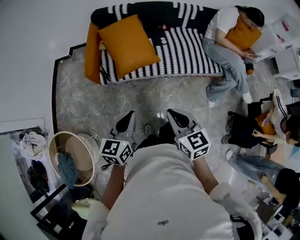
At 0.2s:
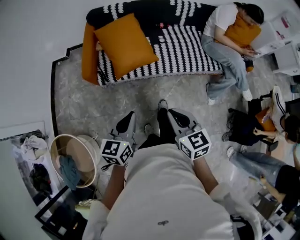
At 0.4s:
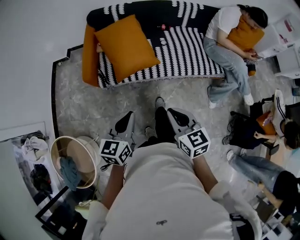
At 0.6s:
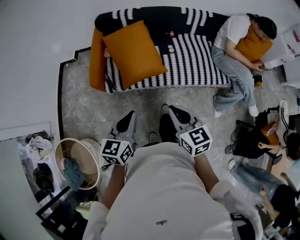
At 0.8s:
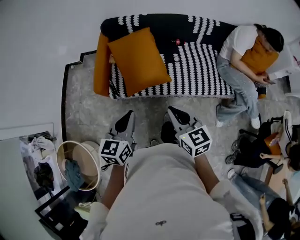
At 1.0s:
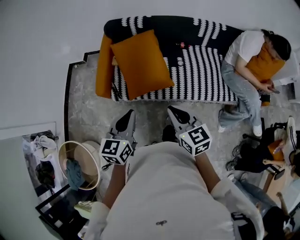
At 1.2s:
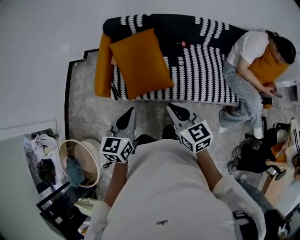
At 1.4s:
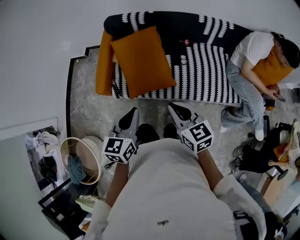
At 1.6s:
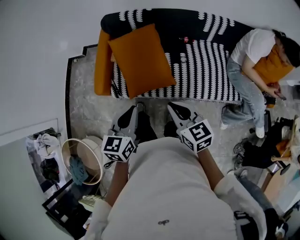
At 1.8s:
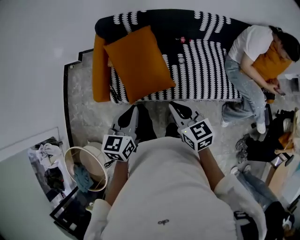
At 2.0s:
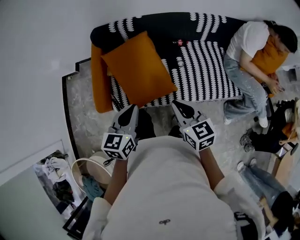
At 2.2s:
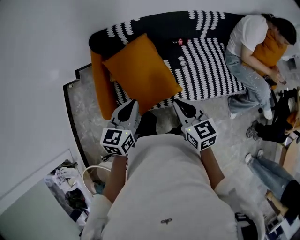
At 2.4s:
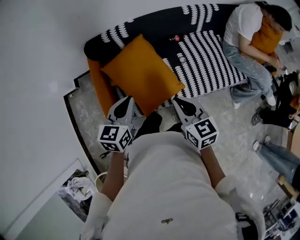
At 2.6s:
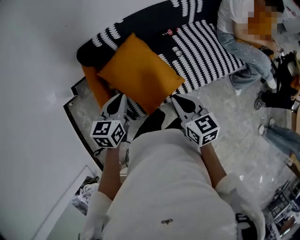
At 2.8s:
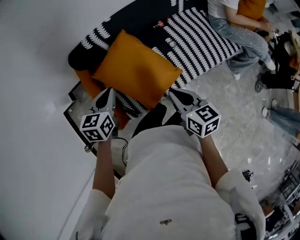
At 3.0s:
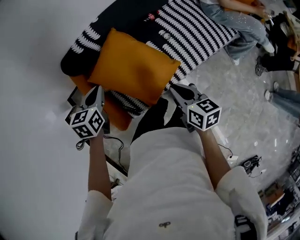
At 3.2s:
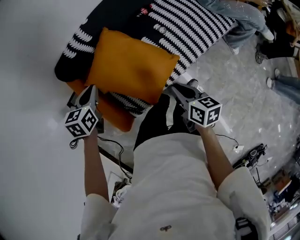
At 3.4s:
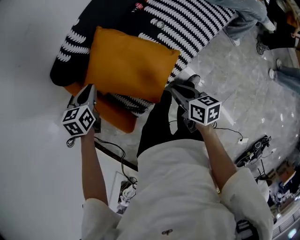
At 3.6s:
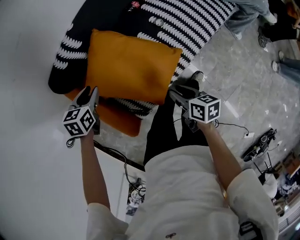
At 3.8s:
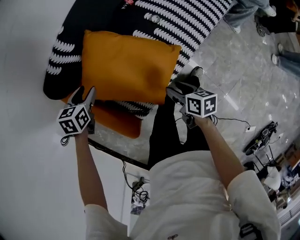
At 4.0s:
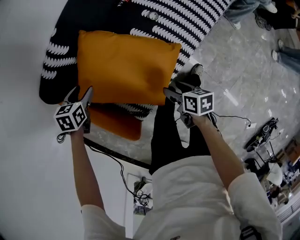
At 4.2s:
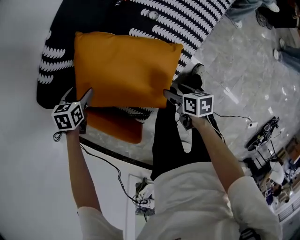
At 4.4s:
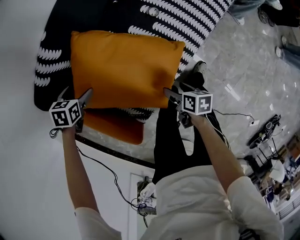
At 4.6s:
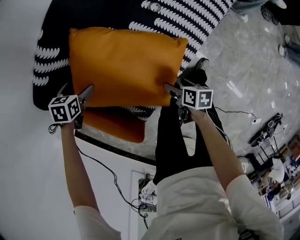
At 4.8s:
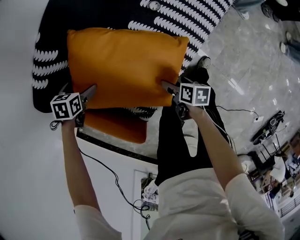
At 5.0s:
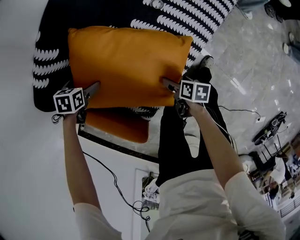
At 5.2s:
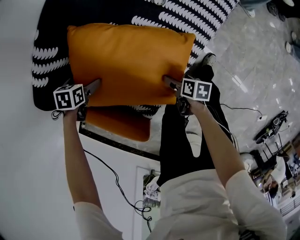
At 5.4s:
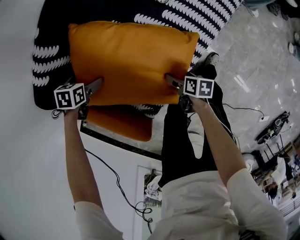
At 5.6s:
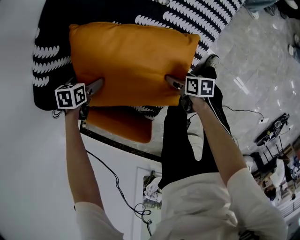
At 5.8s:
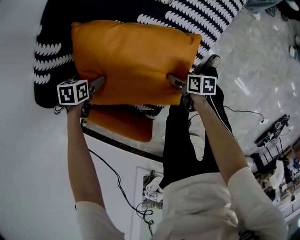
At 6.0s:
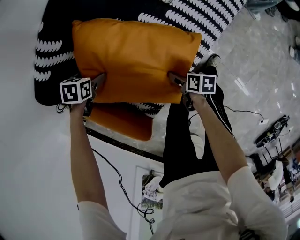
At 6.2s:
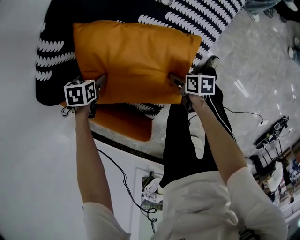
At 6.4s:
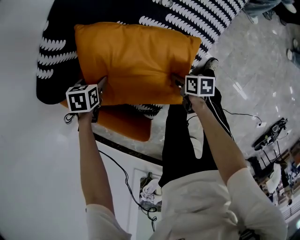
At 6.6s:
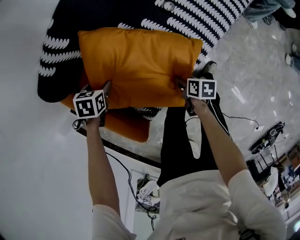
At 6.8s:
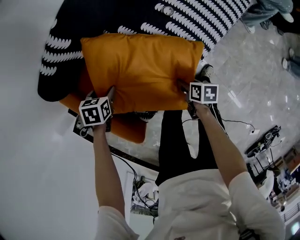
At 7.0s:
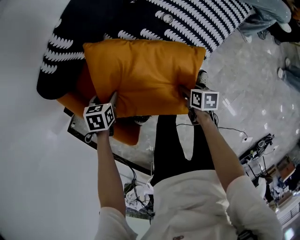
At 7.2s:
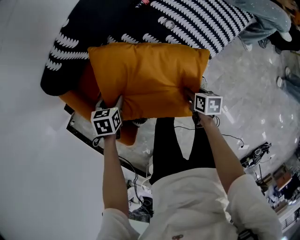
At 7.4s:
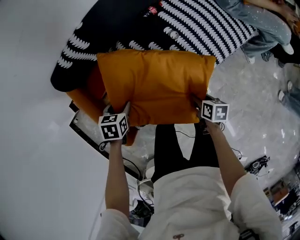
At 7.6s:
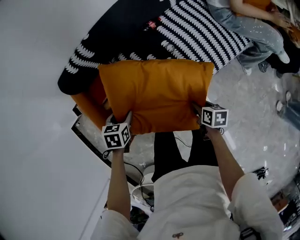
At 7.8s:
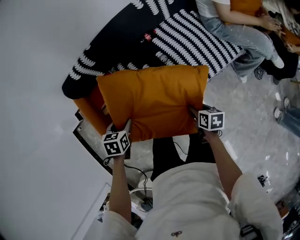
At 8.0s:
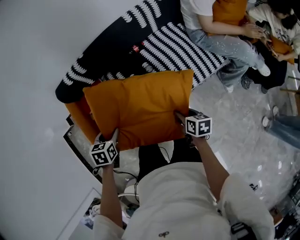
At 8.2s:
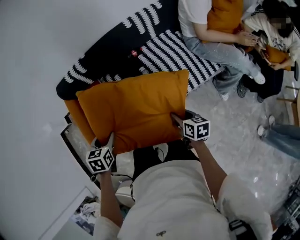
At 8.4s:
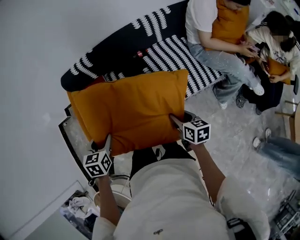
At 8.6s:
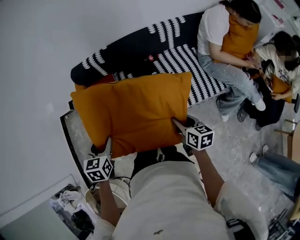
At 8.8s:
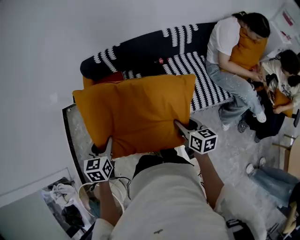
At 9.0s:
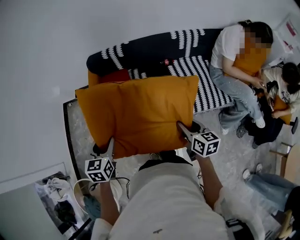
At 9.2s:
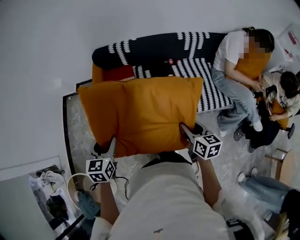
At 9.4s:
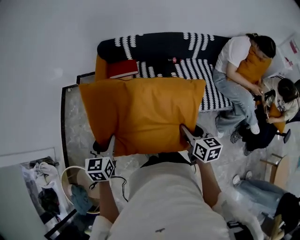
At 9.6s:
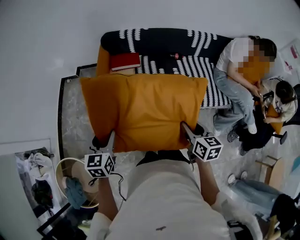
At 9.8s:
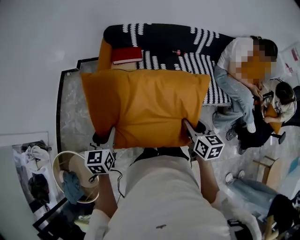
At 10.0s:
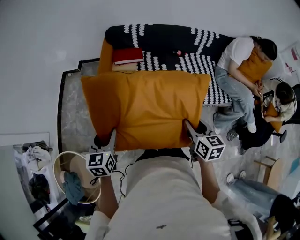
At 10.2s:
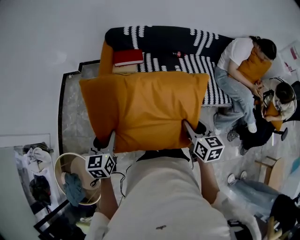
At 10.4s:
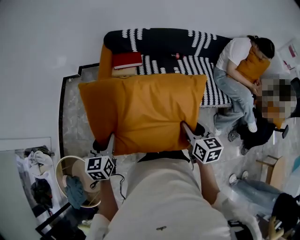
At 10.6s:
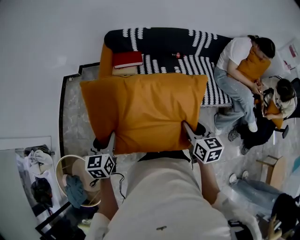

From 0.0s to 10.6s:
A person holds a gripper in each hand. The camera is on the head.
From 0.0s to 1.6s: Both grippers travel together forward, approximately 30 cm.
From 1.6s to 3.0s: The right gripper moves about 20 cm, and turns by roughly 50 degrees; the left gripper moves roughly 40 cm, and rotates approximately 40 degrees.
From 3.0s to 4.6s: Both grippers move downward, some 35 cm. The right gripper rotates roughly 40 degrees, and opens up. The left gripper turns by some 40 degrees, and opens its fingers.
From 4.6s to 6.0s: The two grippers go roughly 5 cm downward.
From 6.0s to 7.6s: The right gripper travels upward by roughly 20 cm, rotates roughly 30 degrees, and closes its fingers; the left gripper changes place by some 30 cm, turns by some 30 degrees, and closes up.
From 7.6s to 9.0s: The right gripper travels upward by some 30 cm, and changes its angle by some 40 degrees. The left gripper ends up approximately 40 cm from where it was, and turns by some 40 degrees.
From 9.0s to 10.6s: Both grippers move backward and to the left, roughly 20 cm.

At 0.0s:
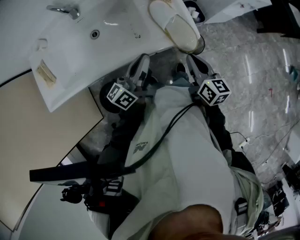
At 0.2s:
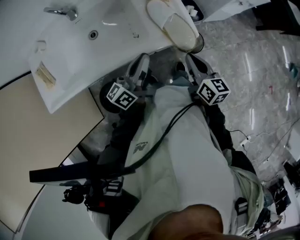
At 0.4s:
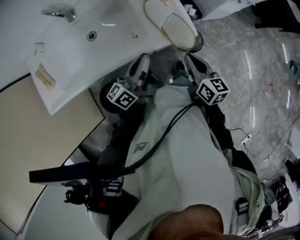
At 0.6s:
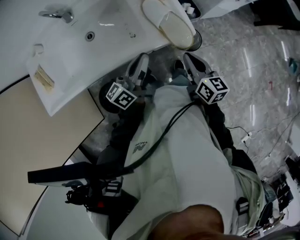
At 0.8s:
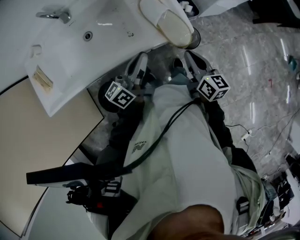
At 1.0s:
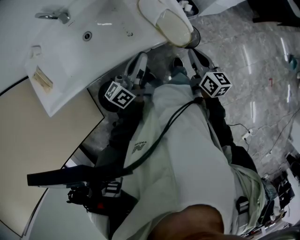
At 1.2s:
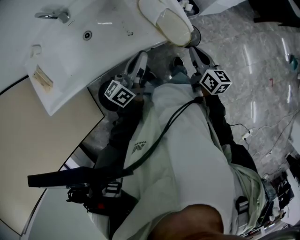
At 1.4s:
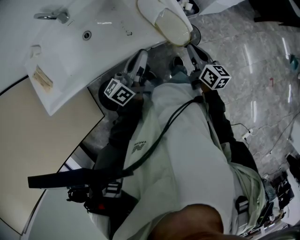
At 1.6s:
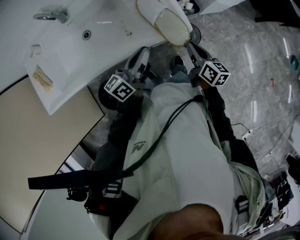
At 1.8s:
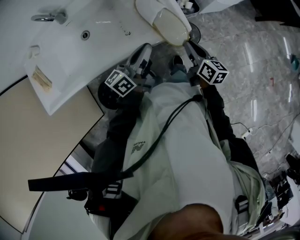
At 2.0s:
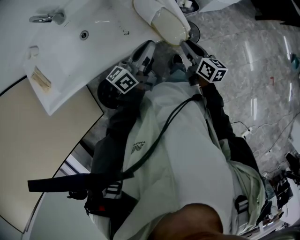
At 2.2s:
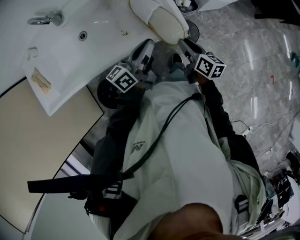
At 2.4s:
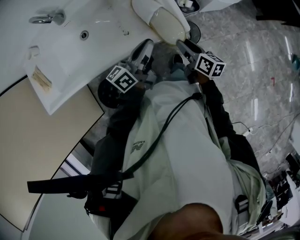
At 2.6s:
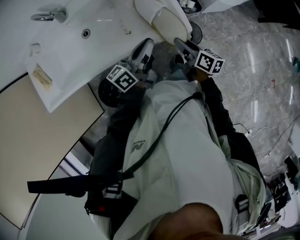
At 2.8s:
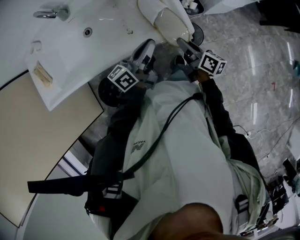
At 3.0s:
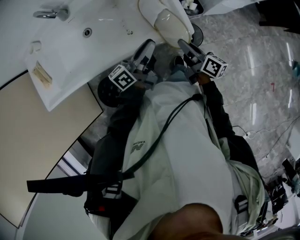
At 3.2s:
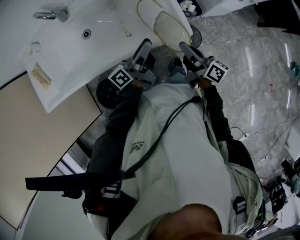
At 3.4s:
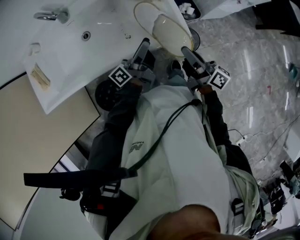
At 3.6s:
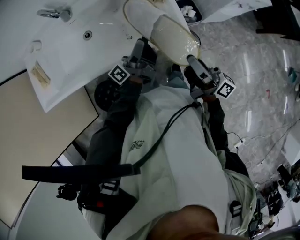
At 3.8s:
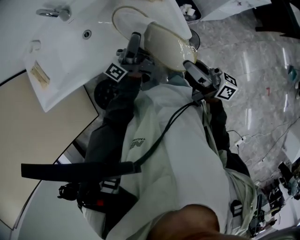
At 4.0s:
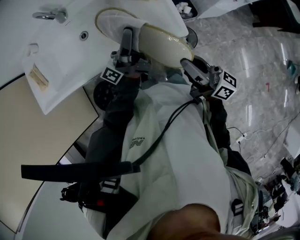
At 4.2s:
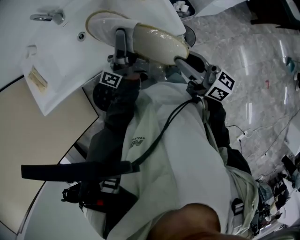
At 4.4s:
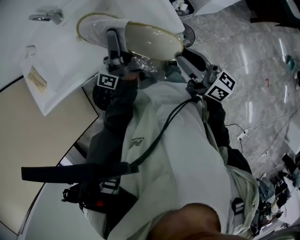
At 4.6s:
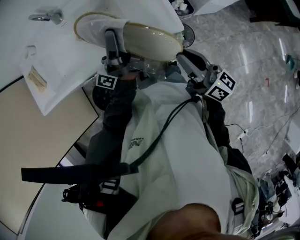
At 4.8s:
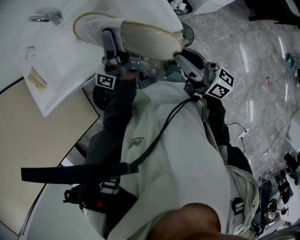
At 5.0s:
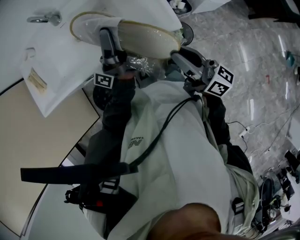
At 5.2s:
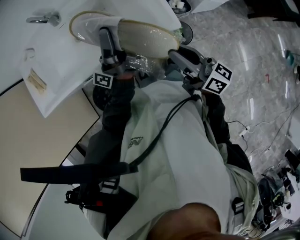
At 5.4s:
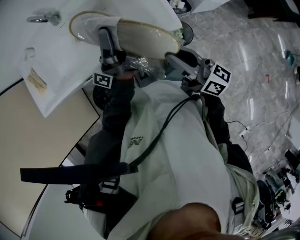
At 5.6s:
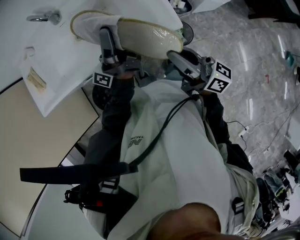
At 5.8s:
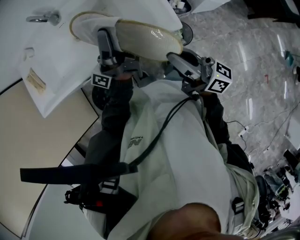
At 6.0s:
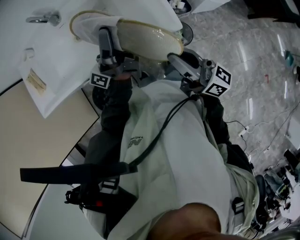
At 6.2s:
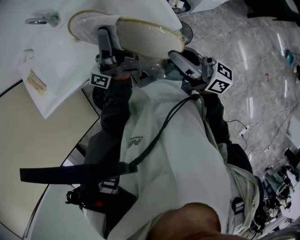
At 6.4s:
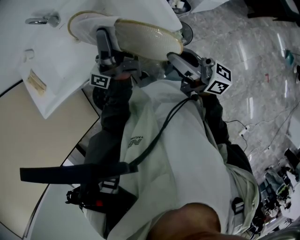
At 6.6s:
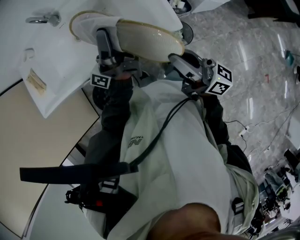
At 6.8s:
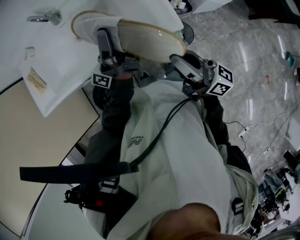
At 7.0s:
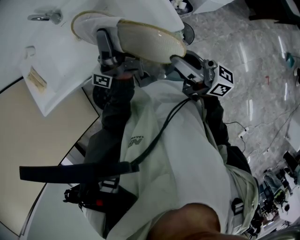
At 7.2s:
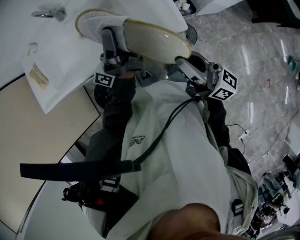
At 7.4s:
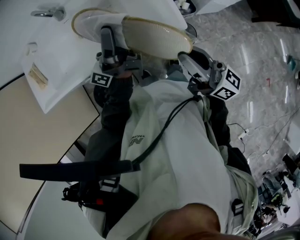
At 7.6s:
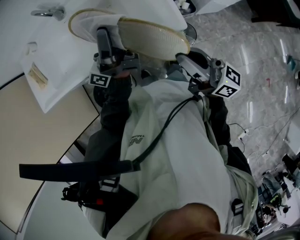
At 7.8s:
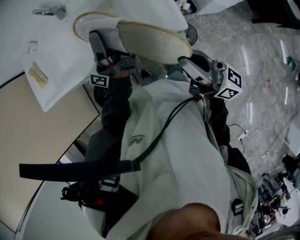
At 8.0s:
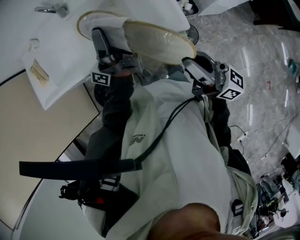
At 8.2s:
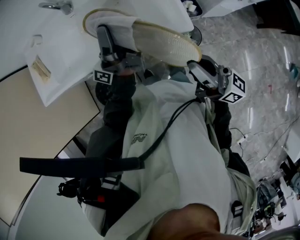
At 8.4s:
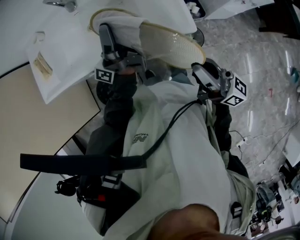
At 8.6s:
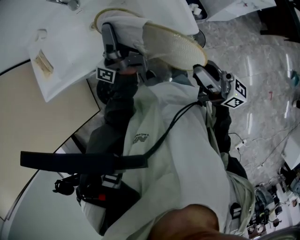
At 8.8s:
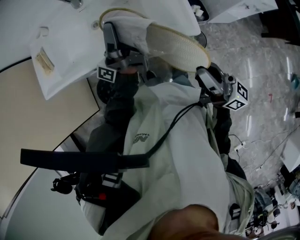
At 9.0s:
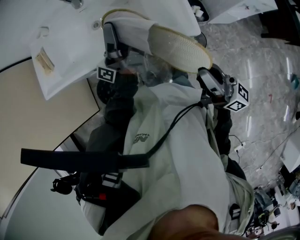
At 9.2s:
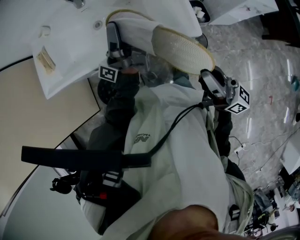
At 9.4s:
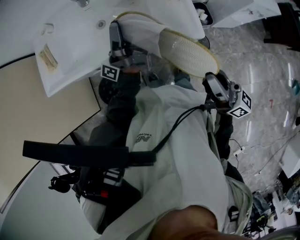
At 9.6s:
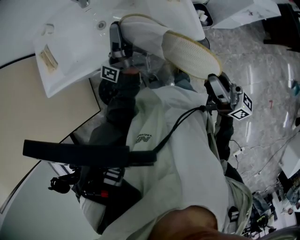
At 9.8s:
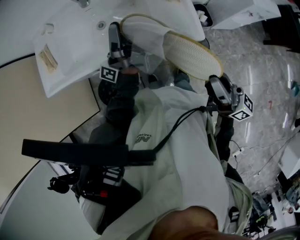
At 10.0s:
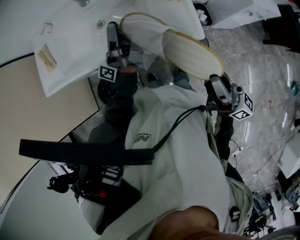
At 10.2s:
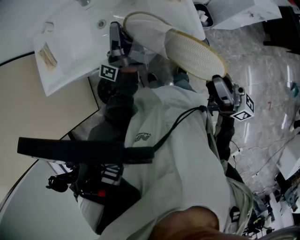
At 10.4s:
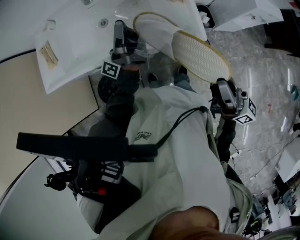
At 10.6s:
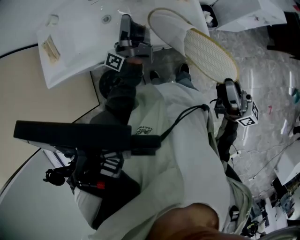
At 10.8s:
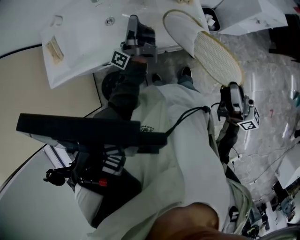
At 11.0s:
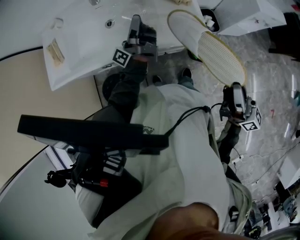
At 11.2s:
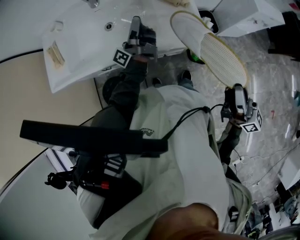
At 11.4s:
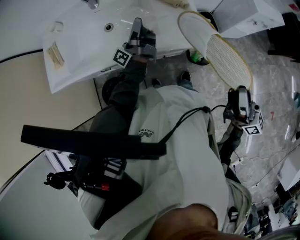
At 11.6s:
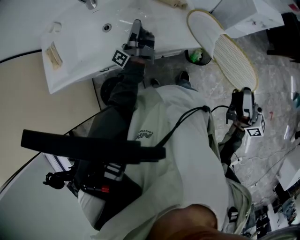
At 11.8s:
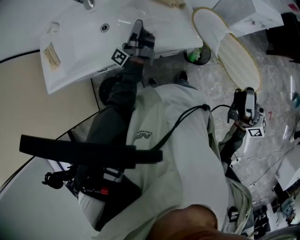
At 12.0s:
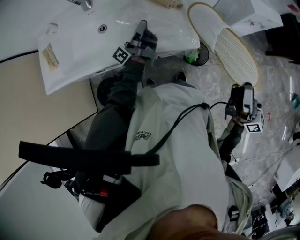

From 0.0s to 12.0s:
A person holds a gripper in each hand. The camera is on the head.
From 0.0s to 1.6s: The right gripper travels downward by roughly 5 cm.
From 1.6s to 3.0s: The right gripper swivels some 20 degrees, and opens and closes again.
From 3.0s to 4.4s: The right gripper shifts some 15 cm upward, and rotates about 20 degrees.
From 10.4s to 12.0s: The right gripper ends up some 15 cm from where it was.

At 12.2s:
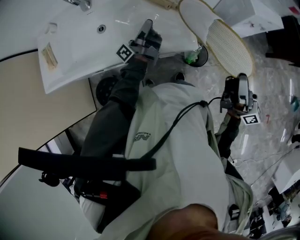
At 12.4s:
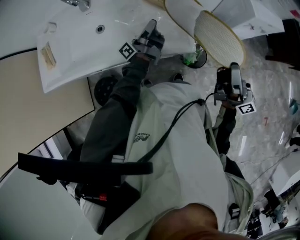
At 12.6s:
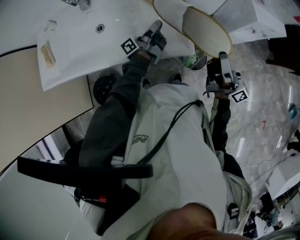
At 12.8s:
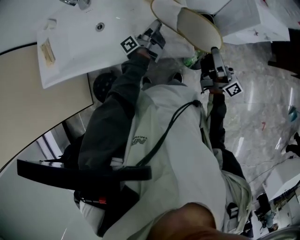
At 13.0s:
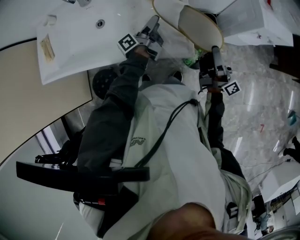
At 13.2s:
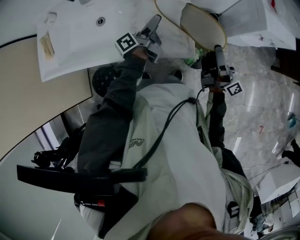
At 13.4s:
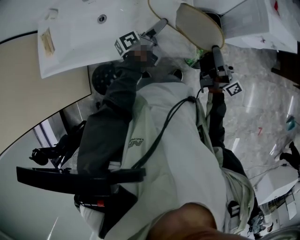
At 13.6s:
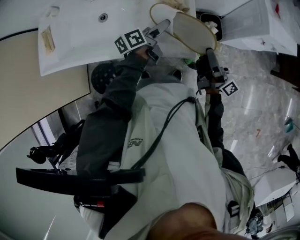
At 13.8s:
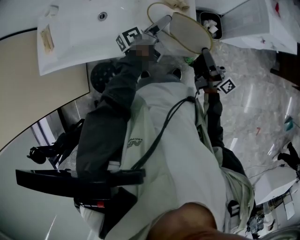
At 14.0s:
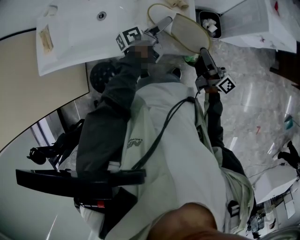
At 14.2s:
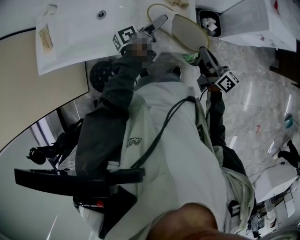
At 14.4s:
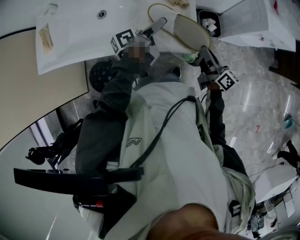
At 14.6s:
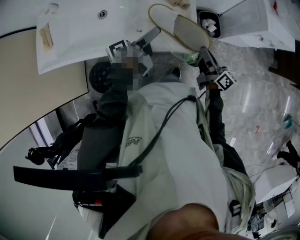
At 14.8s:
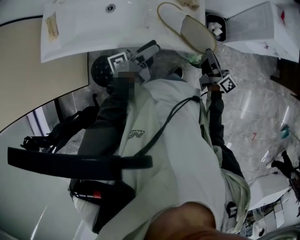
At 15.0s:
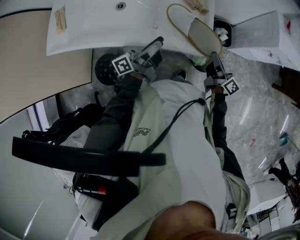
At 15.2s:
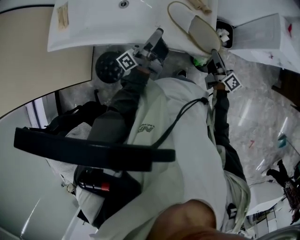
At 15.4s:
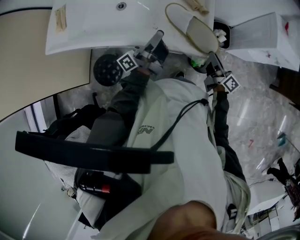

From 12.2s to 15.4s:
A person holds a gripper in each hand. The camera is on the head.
From 12.2s to 13.8s: The right gripper is displaced downward by roughly 15 cm, and changes its angle by approximately 30 degrees.
From 13.8s to 15.4s: The right gripper is displaced downward by some 10 cm, turns by roughly 30 degrees, and opens its fingers.
